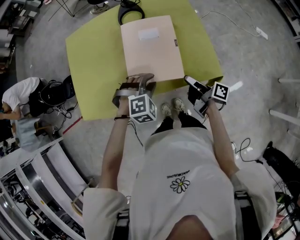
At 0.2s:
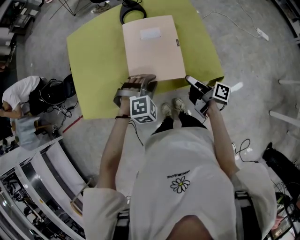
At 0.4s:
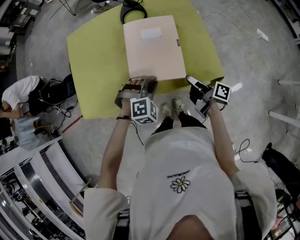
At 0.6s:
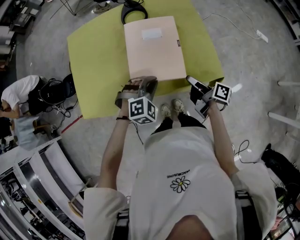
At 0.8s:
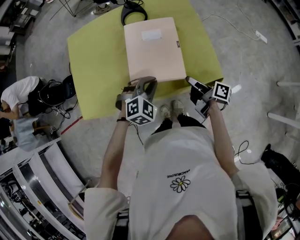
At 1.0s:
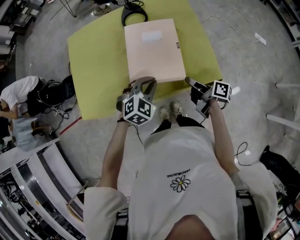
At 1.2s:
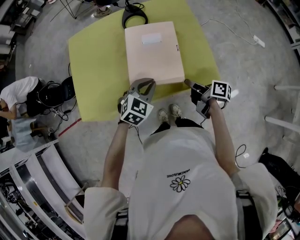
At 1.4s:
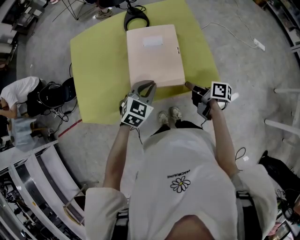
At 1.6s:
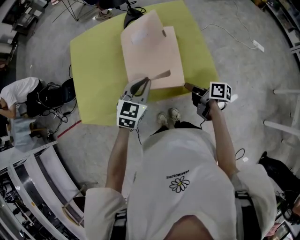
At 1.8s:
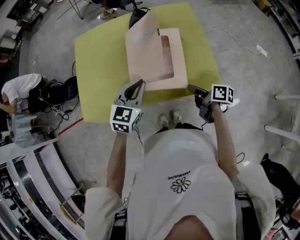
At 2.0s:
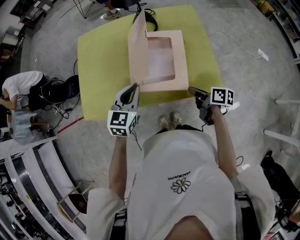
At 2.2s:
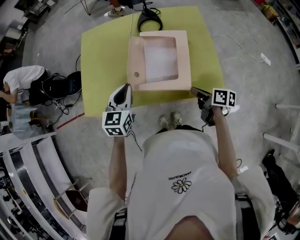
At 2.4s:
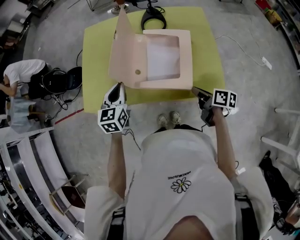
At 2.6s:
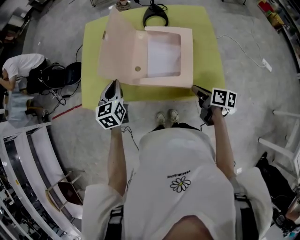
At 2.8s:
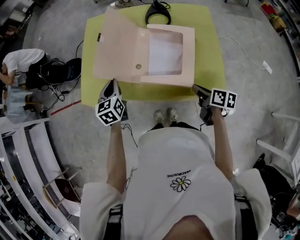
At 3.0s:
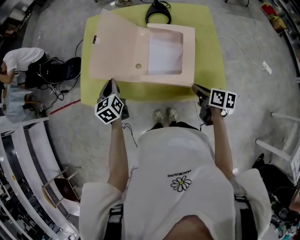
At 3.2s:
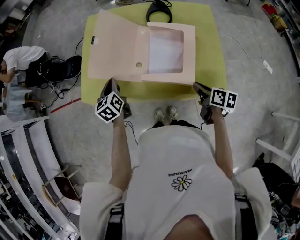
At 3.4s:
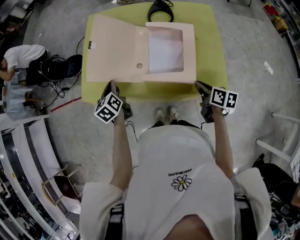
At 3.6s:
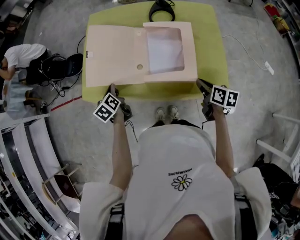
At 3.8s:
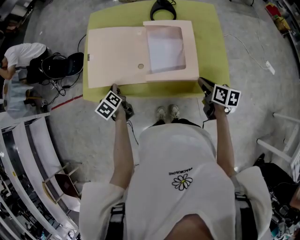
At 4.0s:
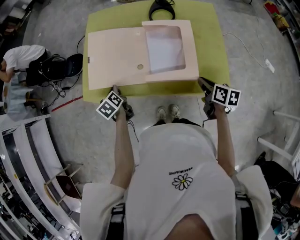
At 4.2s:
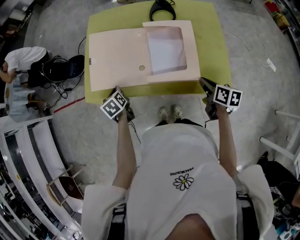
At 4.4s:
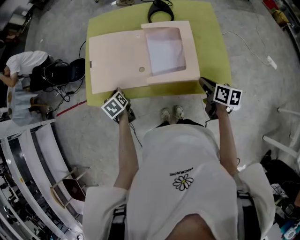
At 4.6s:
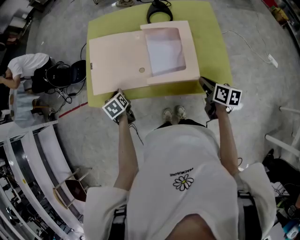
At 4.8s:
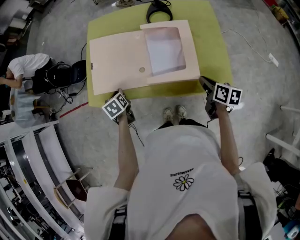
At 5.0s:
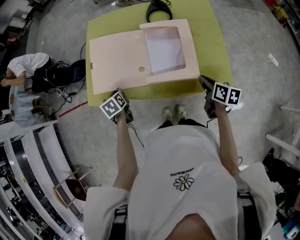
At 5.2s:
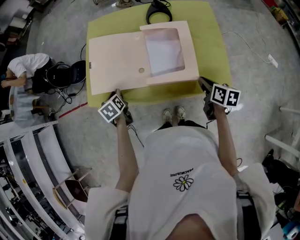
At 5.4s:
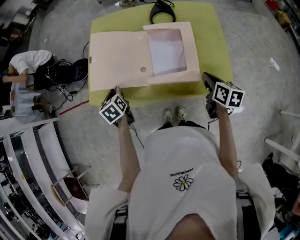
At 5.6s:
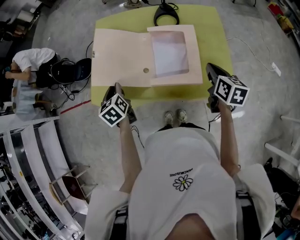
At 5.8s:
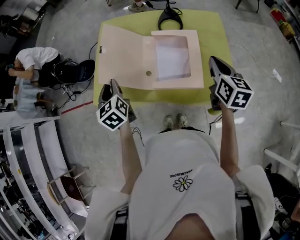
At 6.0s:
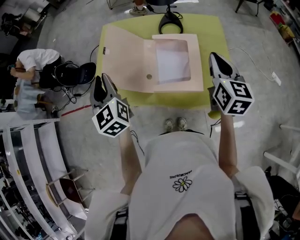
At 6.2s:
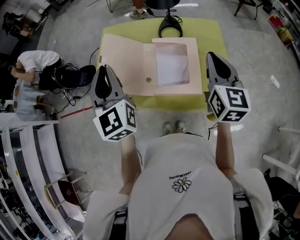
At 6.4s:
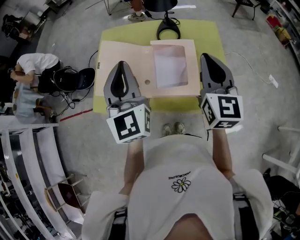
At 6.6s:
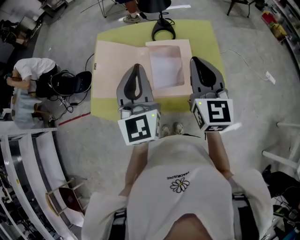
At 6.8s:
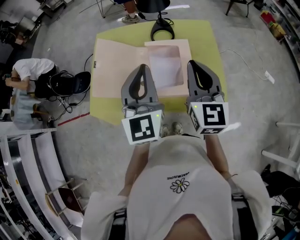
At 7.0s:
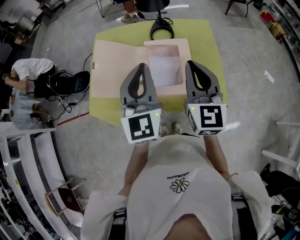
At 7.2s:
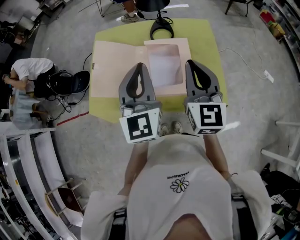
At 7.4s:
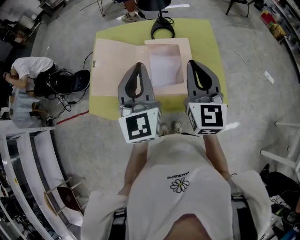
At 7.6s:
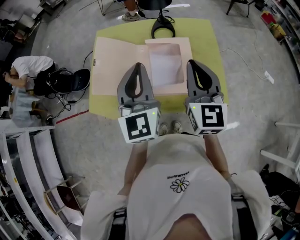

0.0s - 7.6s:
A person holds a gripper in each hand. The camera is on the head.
0.0s - 1.6s: The right gripper swivels about 30 degrees; the left gripper shifts some 5 cm upward, rolls counterclockwise, seen from behind, by about 50 degrees, and closes.
1.6s - 3.0s: The right gripper changes its angle by some 20 degrees; the left gripper shifts about 20 cm to the left, and swivels approximately 60 degrees.
3.0s - 4.6s: The left gripper travels downward by about 10 cm, and swivels roughly 20 degrees.
4.6s - 6.0s: The two grippers go approximately 25 cm upward. The right gripper swivels approximately 40 degrees; the left gripper angles its fingers upward, by some 40 degrees.
6.0s - 7.6s: The left gripper heads to the right, covering some 15 cm, and swivels some 30 degrees; the right gripper moves to the left, some 5 cm.

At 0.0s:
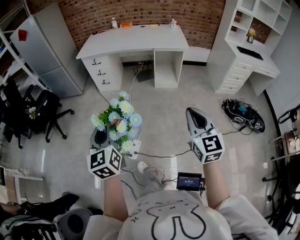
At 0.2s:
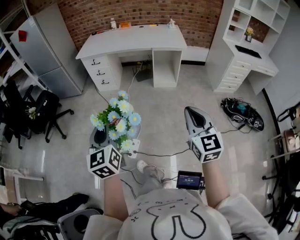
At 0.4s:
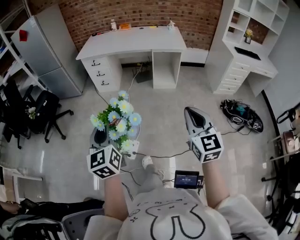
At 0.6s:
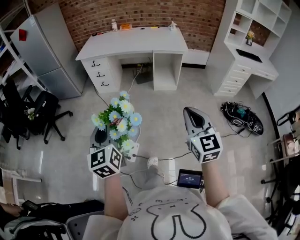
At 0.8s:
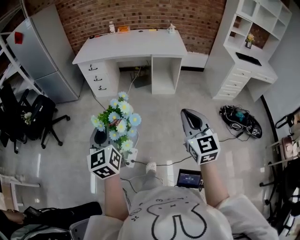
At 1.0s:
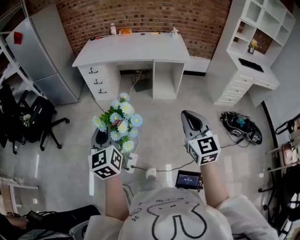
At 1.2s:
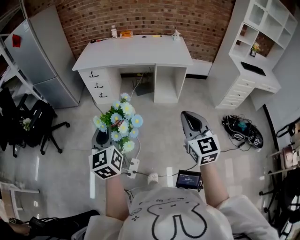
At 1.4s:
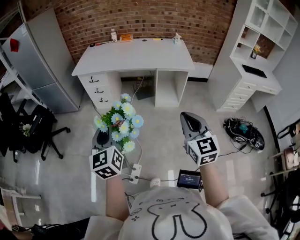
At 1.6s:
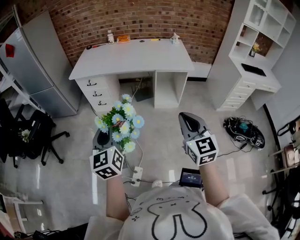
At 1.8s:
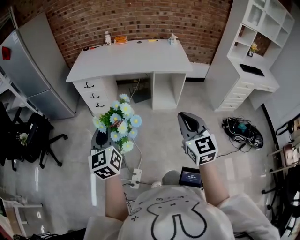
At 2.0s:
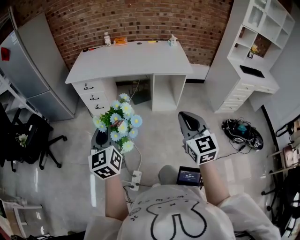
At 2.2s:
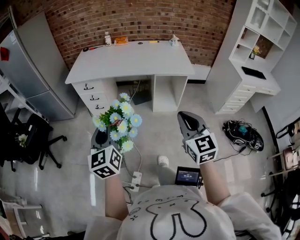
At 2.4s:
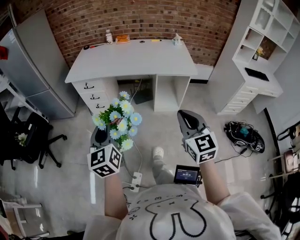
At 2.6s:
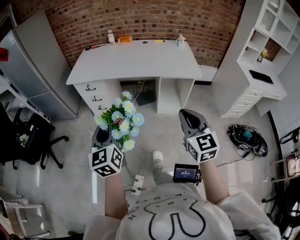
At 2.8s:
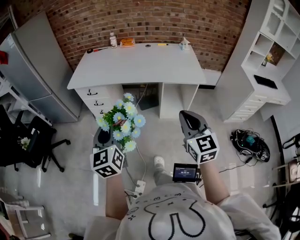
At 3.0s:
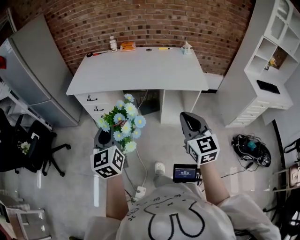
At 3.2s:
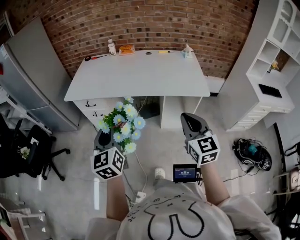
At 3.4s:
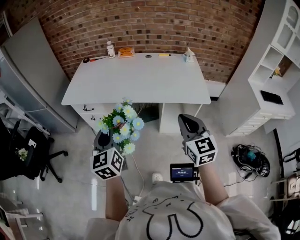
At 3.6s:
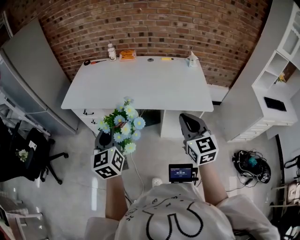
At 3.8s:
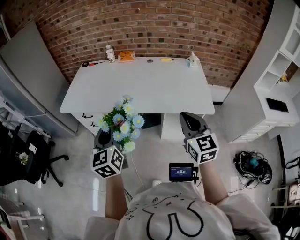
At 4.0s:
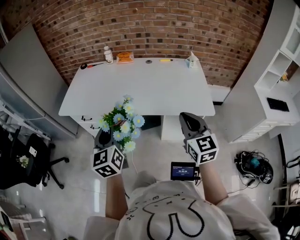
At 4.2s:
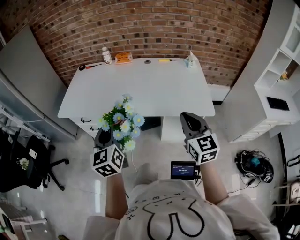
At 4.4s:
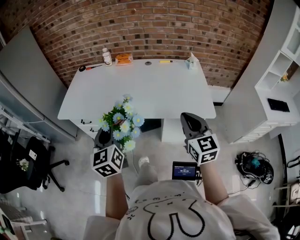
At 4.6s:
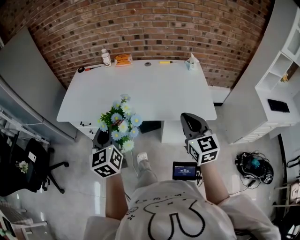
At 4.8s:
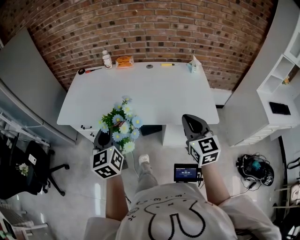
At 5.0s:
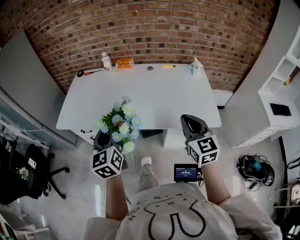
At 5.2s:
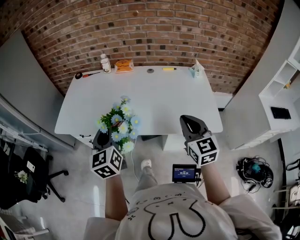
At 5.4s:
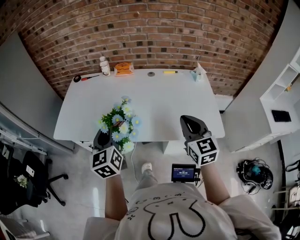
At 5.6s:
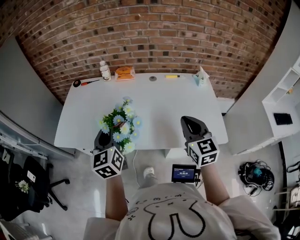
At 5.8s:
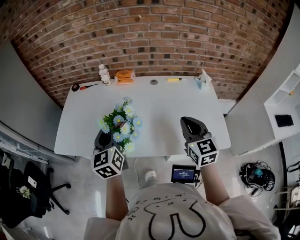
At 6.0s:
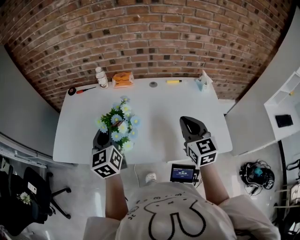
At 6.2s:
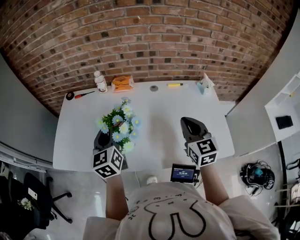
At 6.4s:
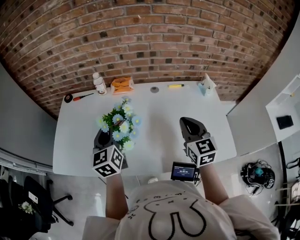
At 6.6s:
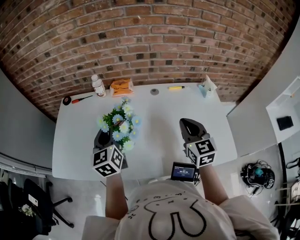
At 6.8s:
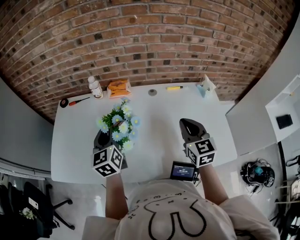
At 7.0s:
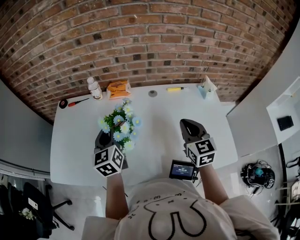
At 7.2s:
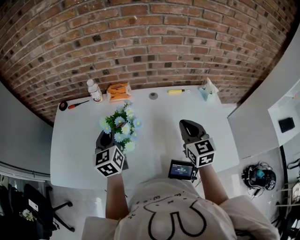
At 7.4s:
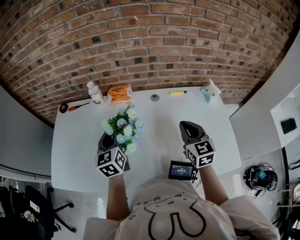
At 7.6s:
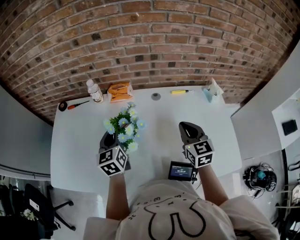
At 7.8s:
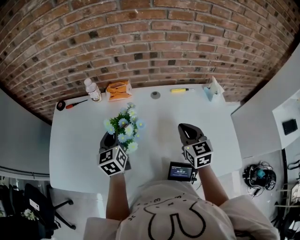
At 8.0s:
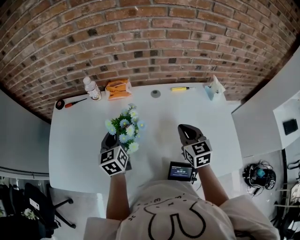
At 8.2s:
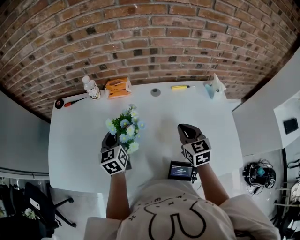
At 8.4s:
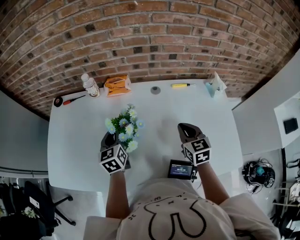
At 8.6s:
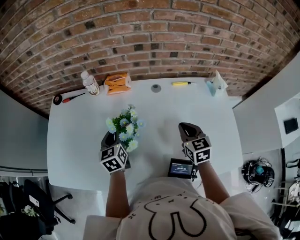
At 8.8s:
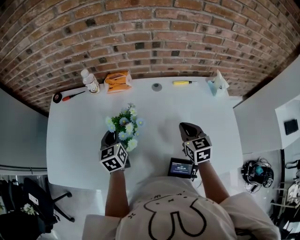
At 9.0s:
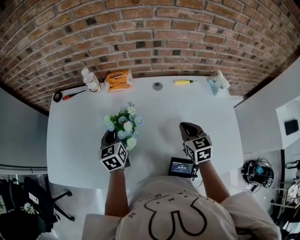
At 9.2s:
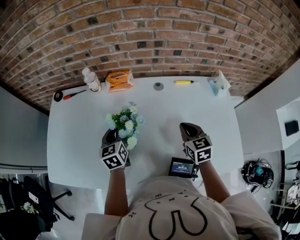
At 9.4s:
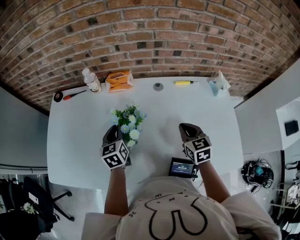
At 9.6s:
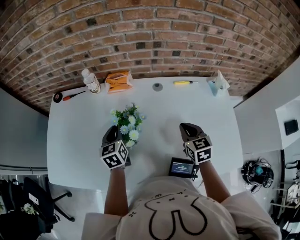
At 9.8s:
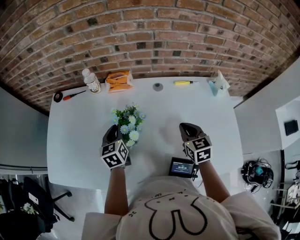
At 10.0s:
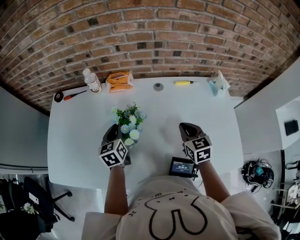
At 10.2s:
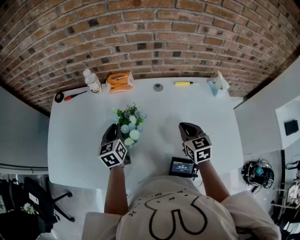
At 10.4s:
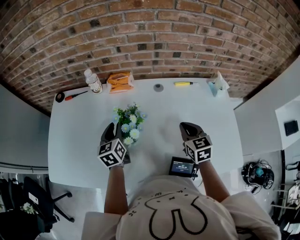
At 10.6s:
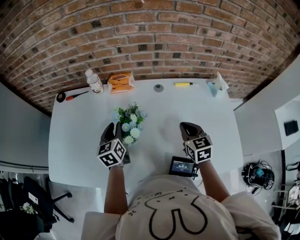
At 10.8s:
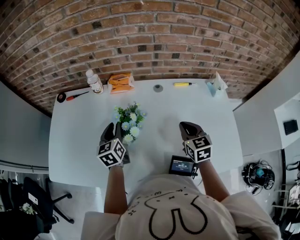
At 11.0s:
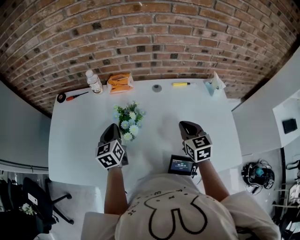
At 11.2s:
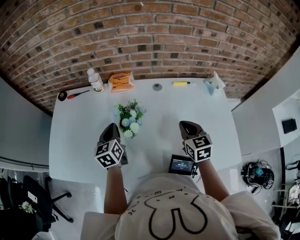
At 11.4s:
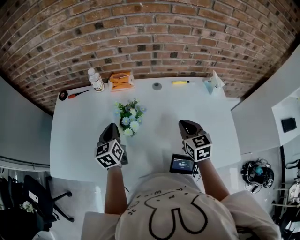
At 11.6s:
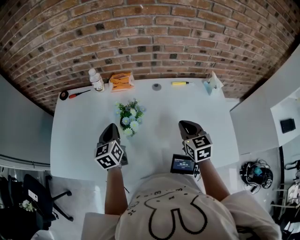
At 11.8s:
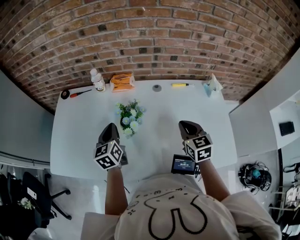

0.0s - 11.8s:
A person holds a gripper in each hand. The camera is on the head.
0.0s - 1.4s: Both grippers move forward, some 20 cm.
1.4s - 3.0s: The grippers both shift forward by roughly 25 cm.
3.0s - 4.4s: The grippers both shift forward by about 25 cm.
4.4s - 6.0s: The two grippers go about 30 cm forward.
6.0s - 7.4s: The two grippers go approximately 15 cm forward and downward.
7.4s - 8.8s: The two grippers go about 10 cm downward.
8.8s - 10.4s: The grippers make only small movements.
10.4s - 11.8s: The right gripper travels upward by roughly 5 cm. The left gripper is displaced upward and backward by some 10 cm, and closes up.

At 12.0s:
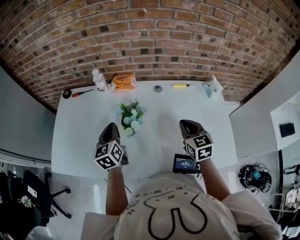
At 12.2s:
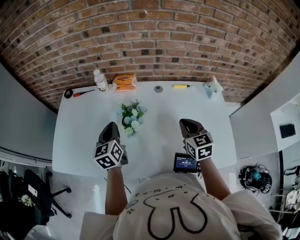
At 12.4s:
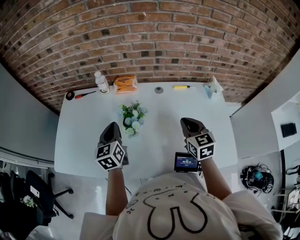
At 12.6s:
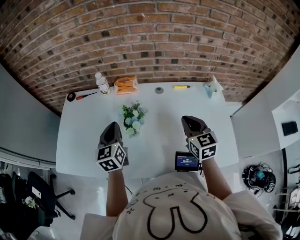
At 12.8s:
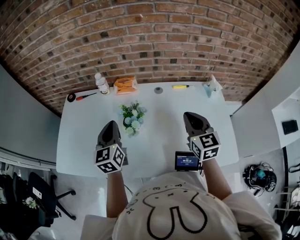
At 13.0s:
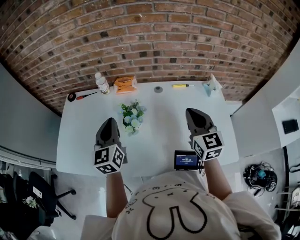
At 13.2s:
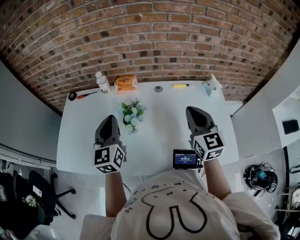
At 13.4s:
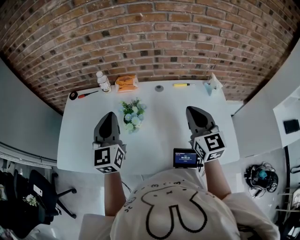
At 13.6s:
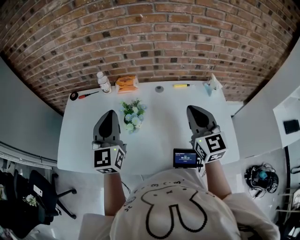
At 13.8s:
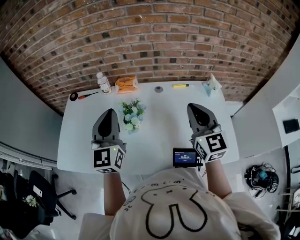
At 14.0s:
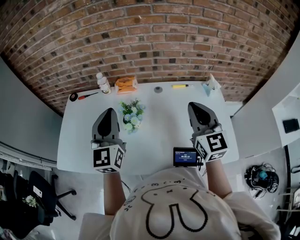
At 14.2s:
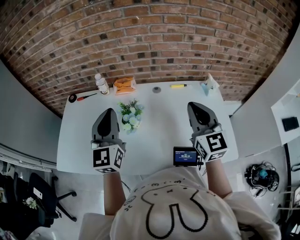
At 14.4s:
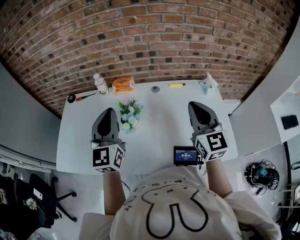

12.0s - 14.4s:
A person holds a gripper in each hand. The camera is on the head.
12.0s - 13.2s: Both grippers move upward, some 10 cm. The right gripper swivels approximately 20 degrees; the left gripper rotates roughly 20 degrees.
13.2s - 14.4s: The right gripper changes place by roughly 5 cm. Meanwhile the left gripper is displaced upward by some 5 cm.

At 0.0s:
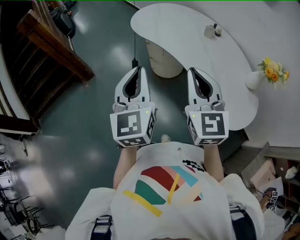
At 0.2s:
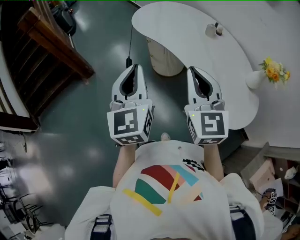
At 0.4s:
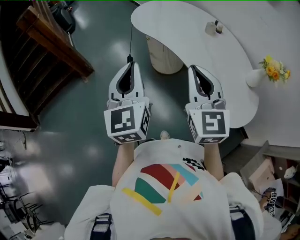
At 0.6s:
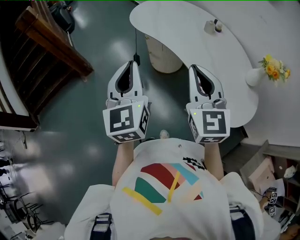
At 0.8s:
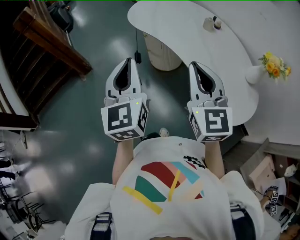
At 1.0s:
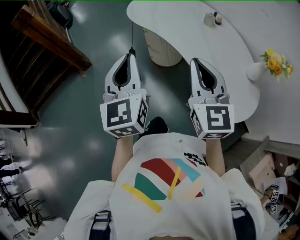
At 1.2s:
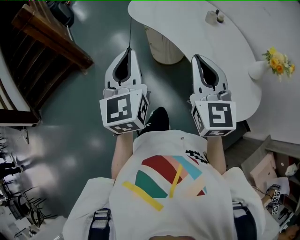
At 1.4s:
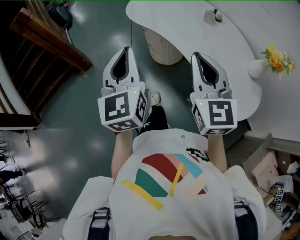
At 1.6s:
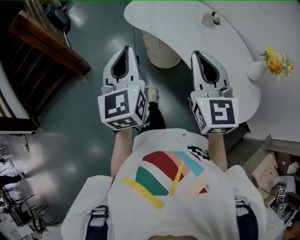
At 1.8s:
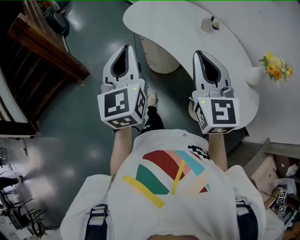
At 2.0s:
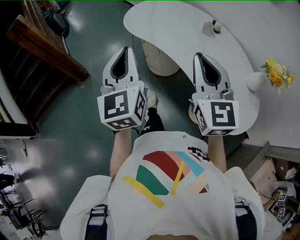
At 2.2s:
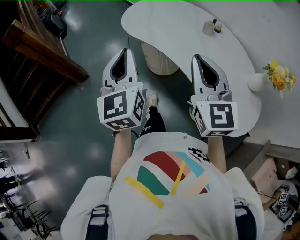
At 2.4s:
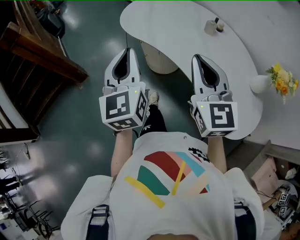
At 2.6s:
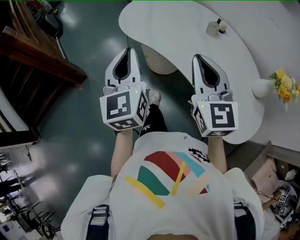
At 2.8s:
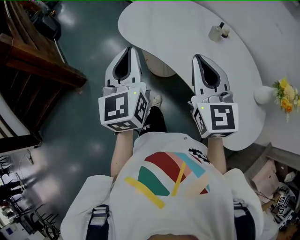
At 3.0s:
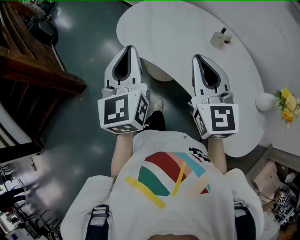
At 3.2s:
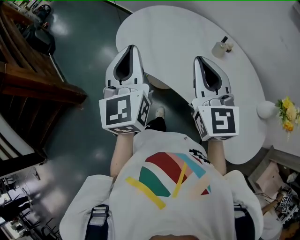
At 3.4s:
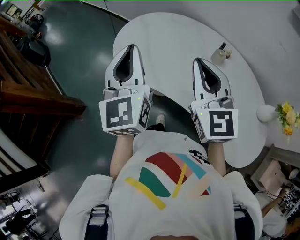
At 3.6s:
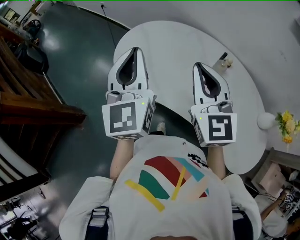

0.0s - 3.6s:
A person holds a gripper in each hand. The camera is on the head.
0.0s - 1.8s: The left gripper is displaced forward by about 5 cm. Meanwhile the right gripper changes place by about 5 cm.
1.8s - 3.6s: Both grippers travel together forward, about 40 cm.
